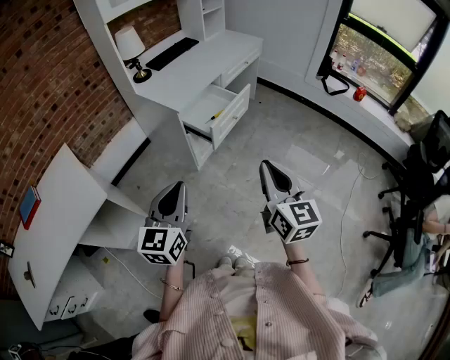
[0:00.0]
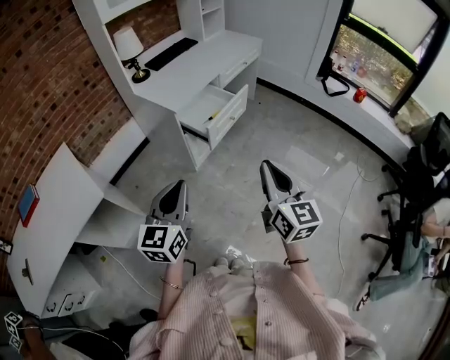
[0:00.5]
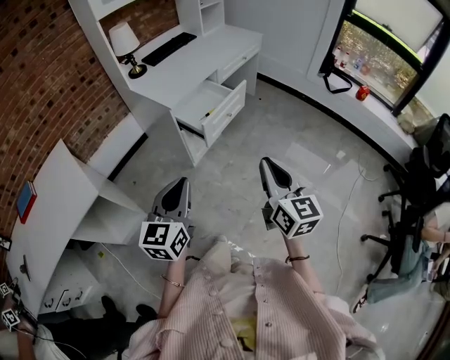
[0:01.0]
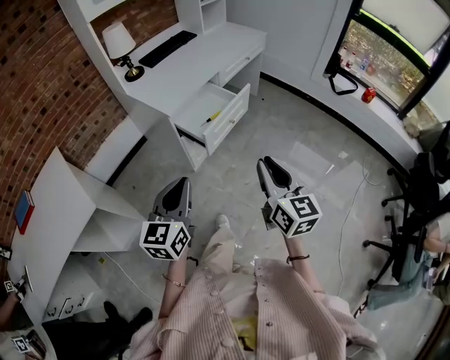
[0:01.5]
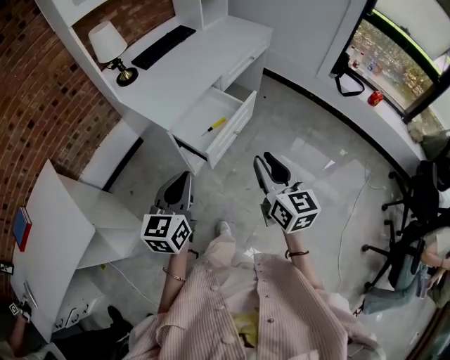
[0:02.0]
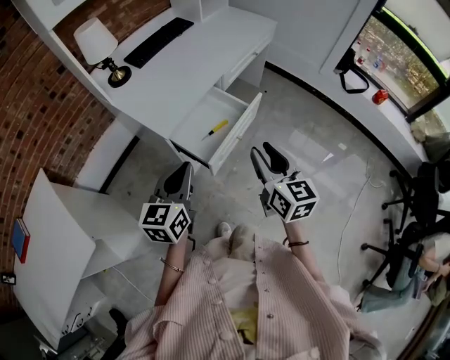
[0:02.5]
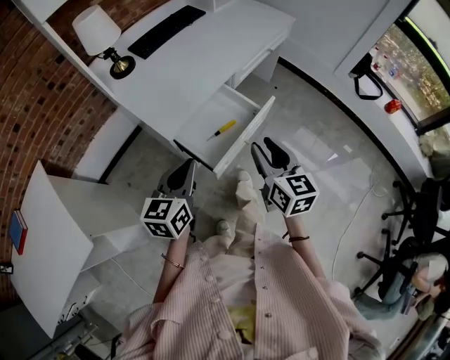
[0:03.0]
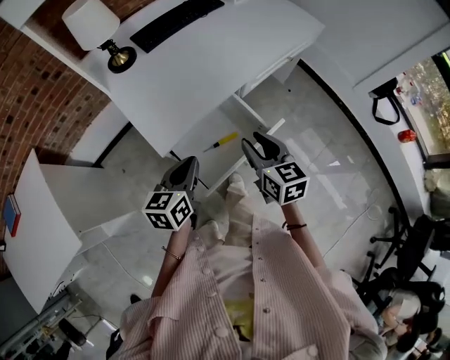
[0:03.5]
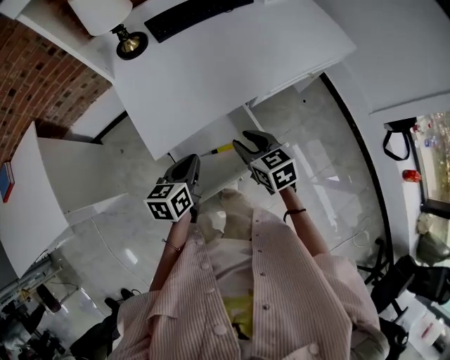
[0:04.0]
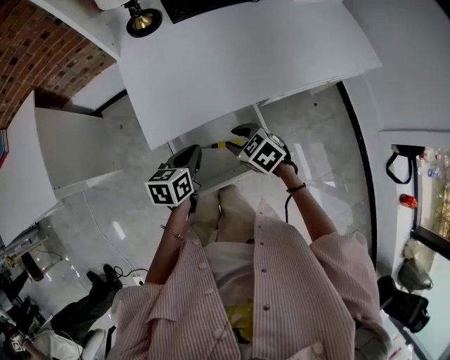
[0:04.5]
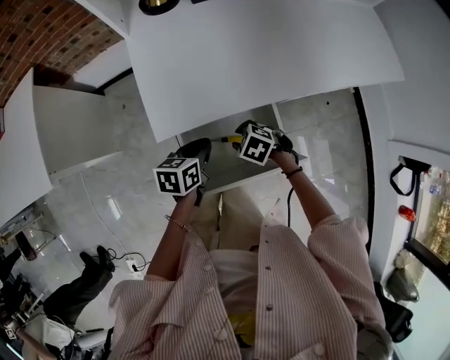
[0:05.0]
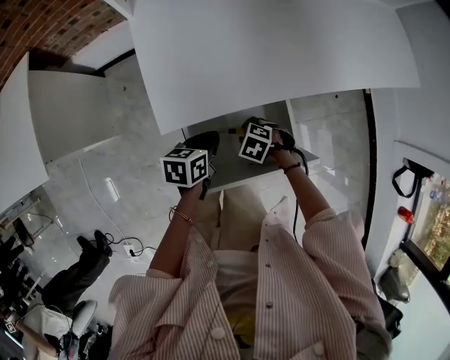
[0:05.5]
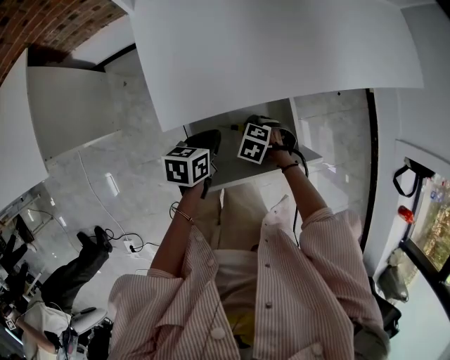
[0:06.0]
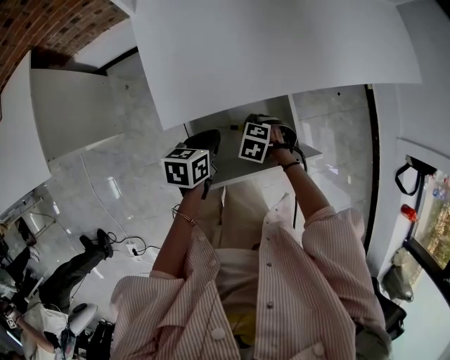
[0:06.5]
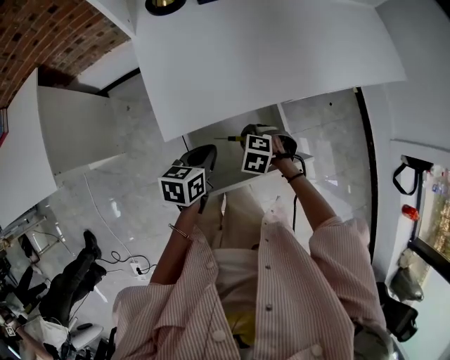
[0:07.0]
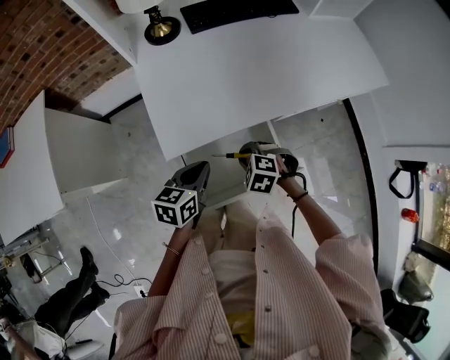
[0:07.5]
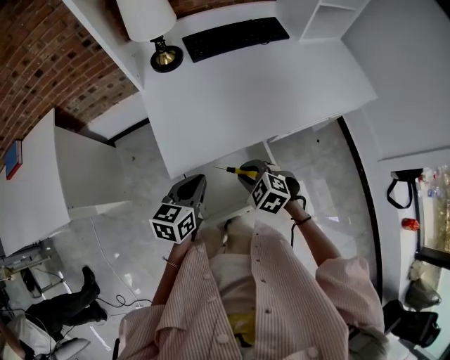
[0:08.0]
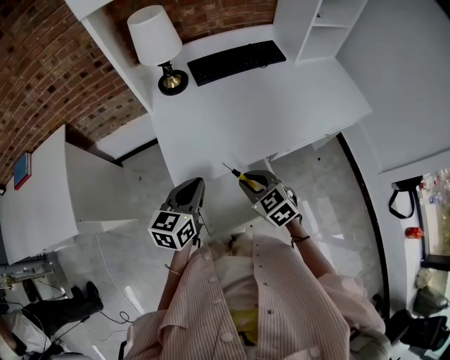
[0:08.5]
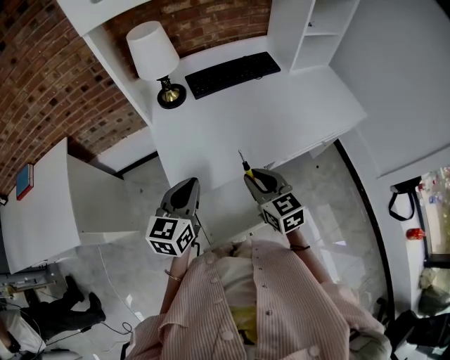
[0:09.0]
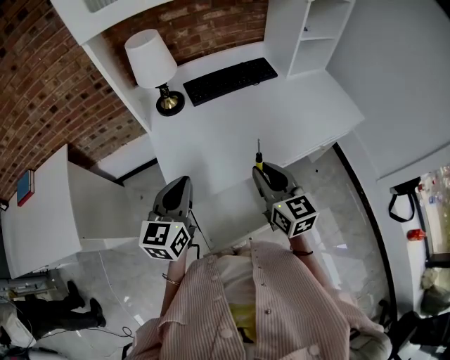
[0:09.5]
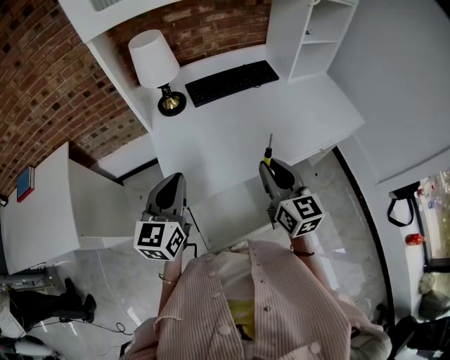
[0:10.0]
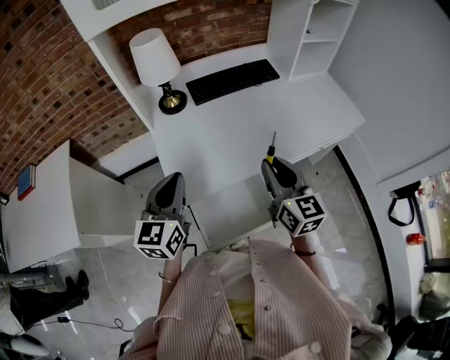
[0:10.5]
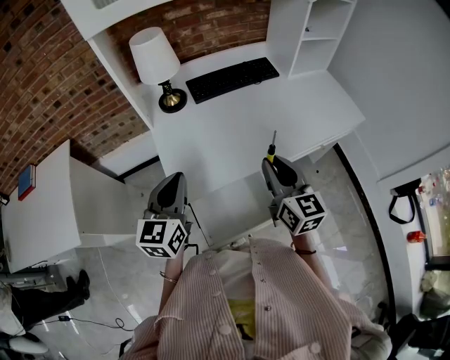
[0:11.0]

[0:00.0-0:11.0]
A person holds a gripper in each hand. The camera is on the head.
0:00.0 to 0:02.0: Both grippers move forward, some 25 cm. The right gripper opens up.
0:02.0 to 0:03.5: The left gripper is displaced forward and downward by some 30 cm, and rotates some 20 degrees, while the right gripper is displaced forward by about 30 cm, and changes its angle by about 30 degrees.
0:03.5 to 0:05.5: The right gripper goes approximately 30 cm downward, and tilts its fingers about 50 degrees downward. Meanwhile the left gripper is displaced downward by some 20 cm, and turns by roughly 30 degrees.
0:05.5 to 0:07.5: Both grippers travel together upward, approximately 10 cm.
0:07.5 to 0:09.0: Both grippers move upward, about 20 cm. The right gripper tilts its fingers approximately 50 degrees upward, while the left gripper swivels some 30 degrees.
0:09.0 to 0:11.0: The right gripper moves upward and to the right, some 10 cm, and turns by about 20 degrees. The left gripper is displaced upward by roughly 5 cm.

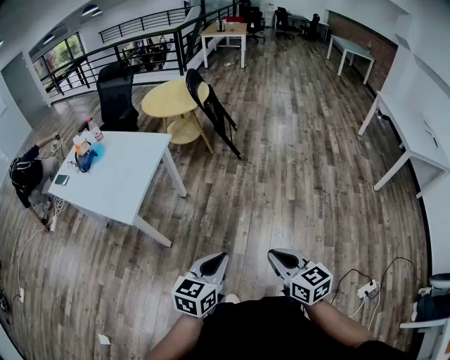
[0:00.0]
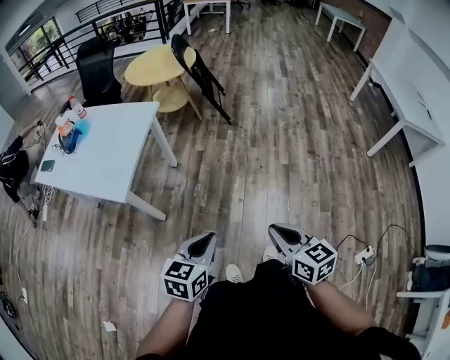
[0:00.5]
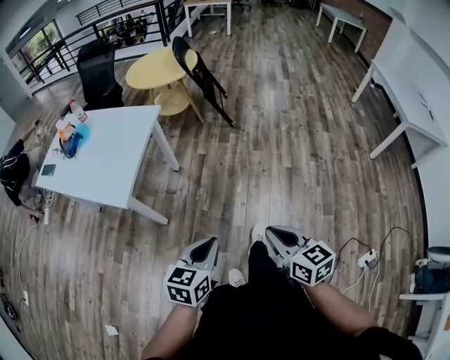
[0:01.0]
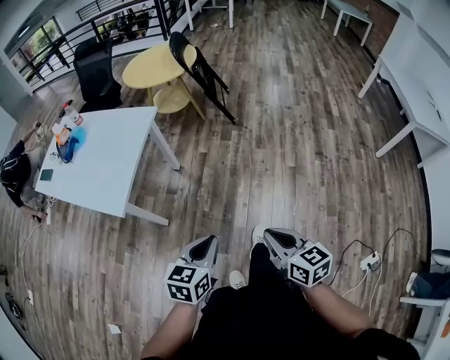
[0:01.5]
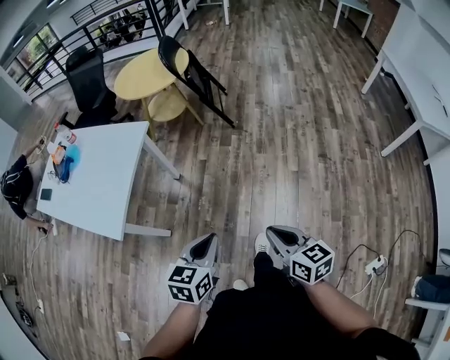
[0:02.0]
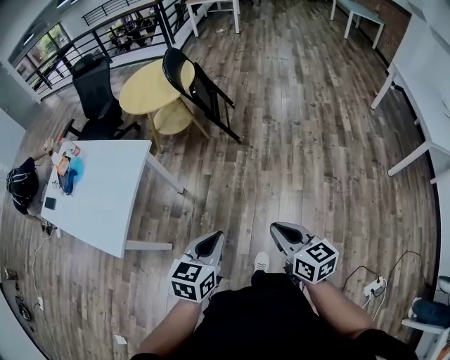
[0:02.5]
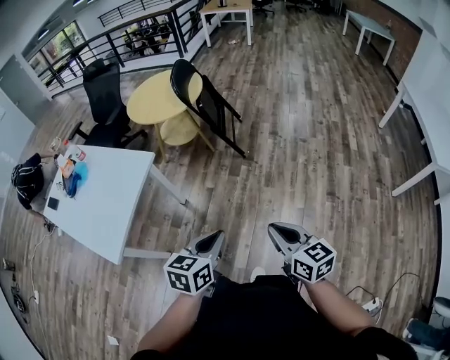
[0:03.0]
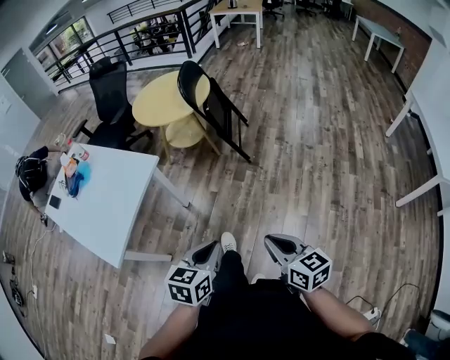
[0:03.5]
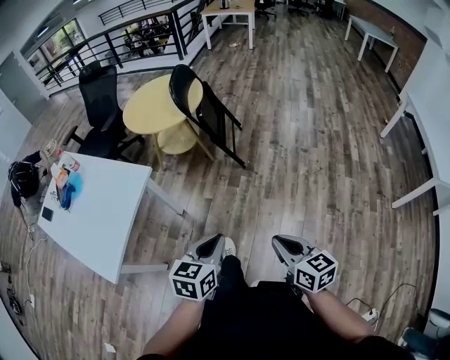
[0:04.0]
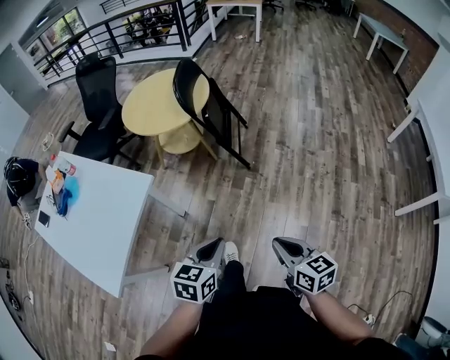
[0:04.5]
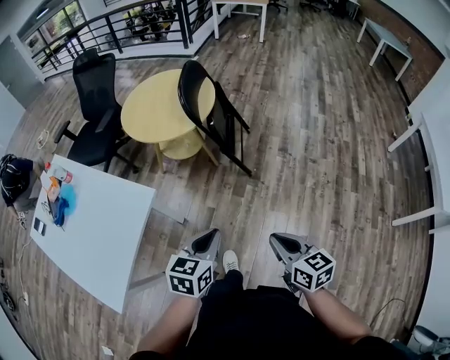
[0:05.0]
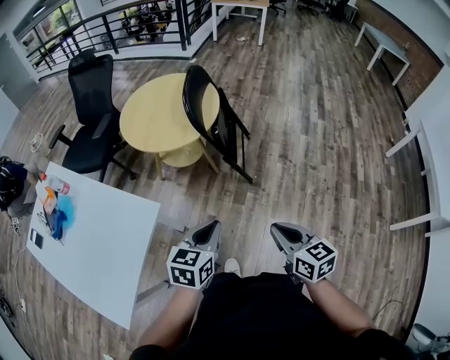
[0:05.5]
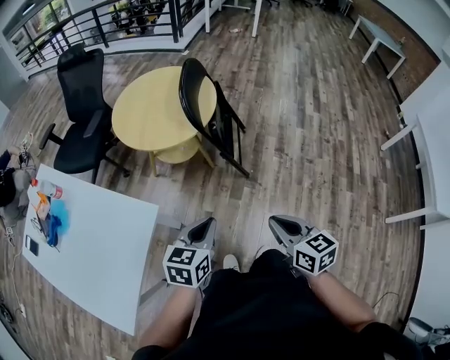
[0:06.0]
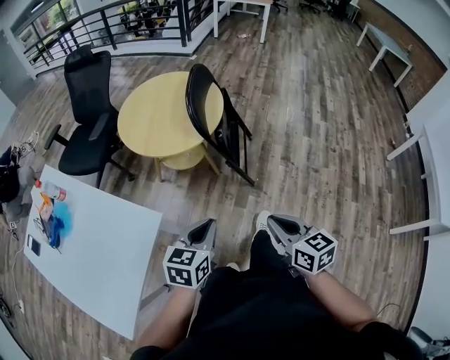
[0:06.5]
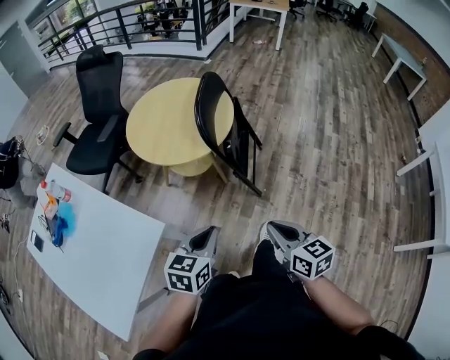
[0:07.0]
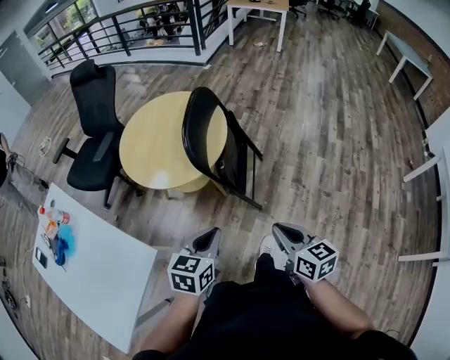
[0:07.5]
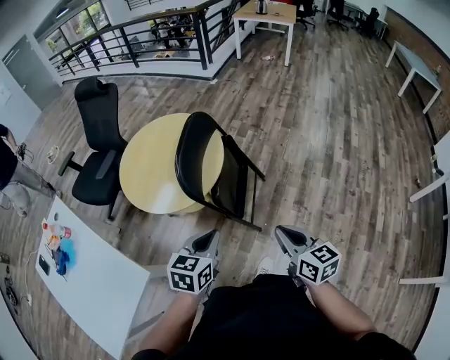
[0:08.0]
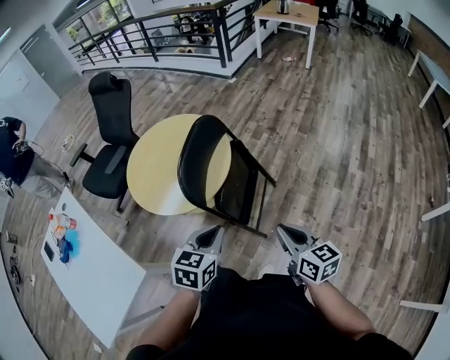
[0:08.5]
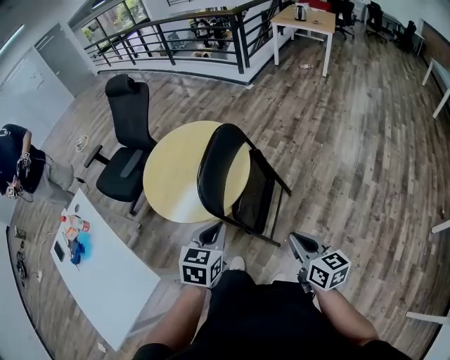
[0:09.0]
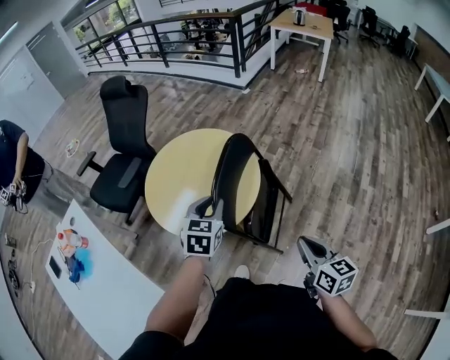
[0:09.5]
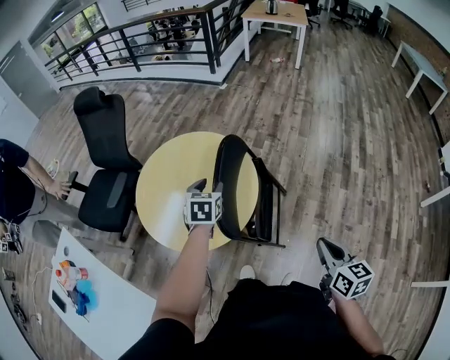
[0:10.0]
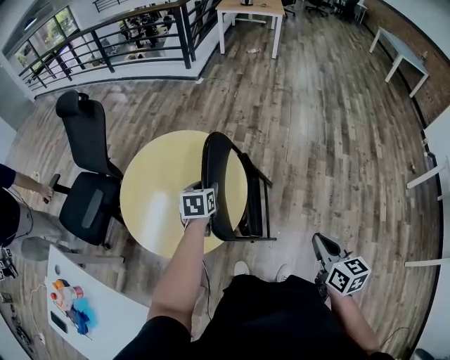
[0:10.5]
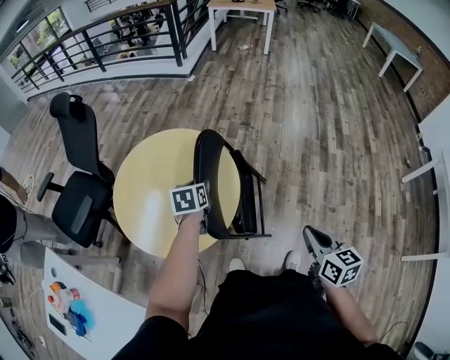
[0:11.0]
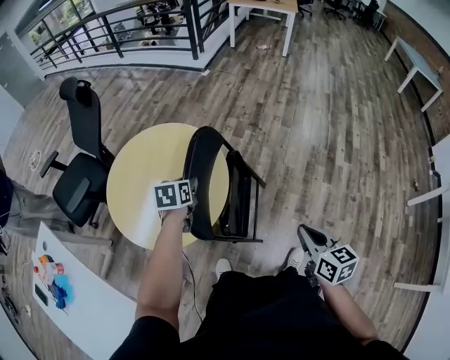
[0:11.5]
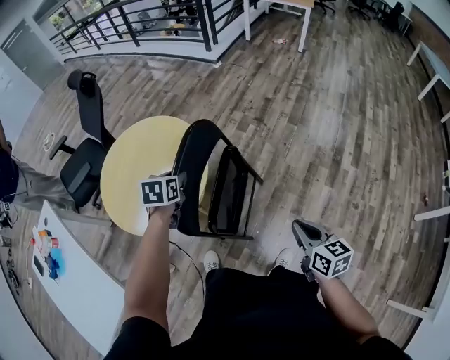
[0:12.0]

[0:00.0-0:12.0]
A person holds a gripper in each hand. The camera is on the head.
0:00.0 to 0:02.0: The two grippers go roughly 20 cm forward.
0:02.0 to 0:04.0: The two grippers go some 25 cm forward.
0:04.0 to 0:06.0: The left gripper is displaced forward and to the left by roughly 30 cm. The right gripper travels forward by about 30 cm.
0:06.0 to 0:08.0: The grippers both shift forward and to the right by approximately 30 cm.
0:08.0 to 0:10.0: The left gripper goes approximately 35 cm forward, and opens. Meanwhile the right gripper heads forward, covering approximately 10 cm.
0:10.0 to 0:12.0: The left gripper is displaced to the right by about 10 cm; the right gripper travels to the right and forward by approximately 20 cm.

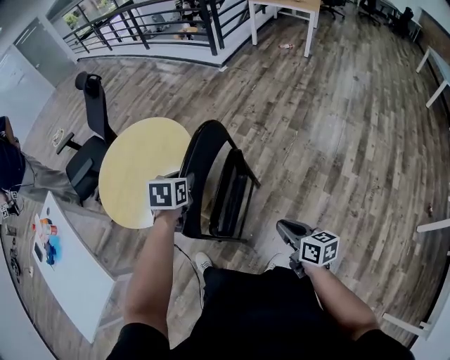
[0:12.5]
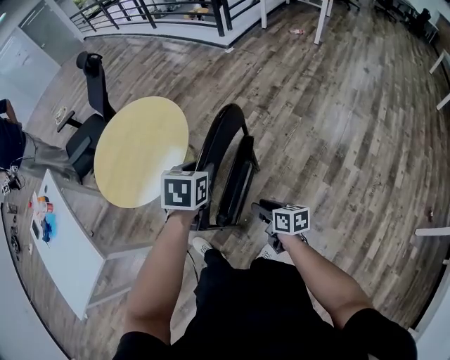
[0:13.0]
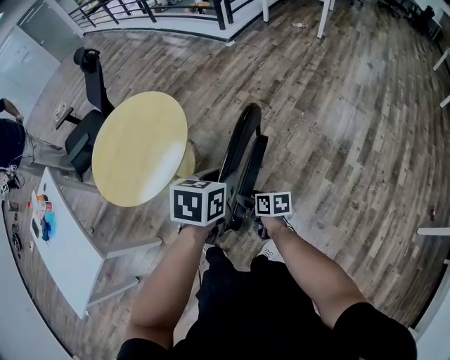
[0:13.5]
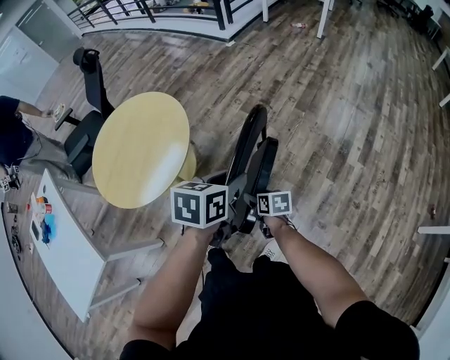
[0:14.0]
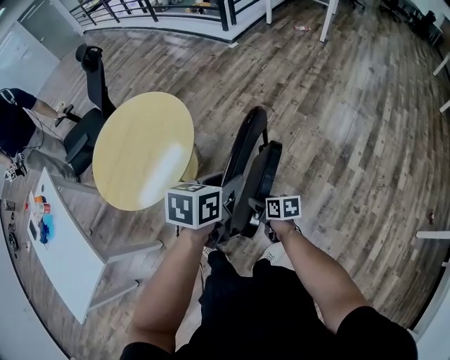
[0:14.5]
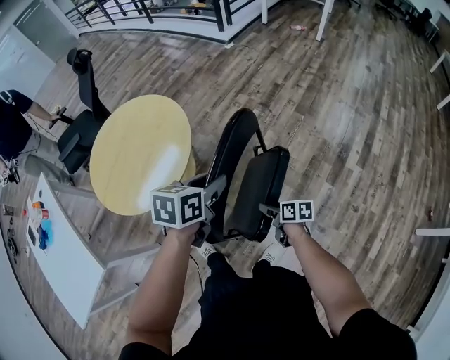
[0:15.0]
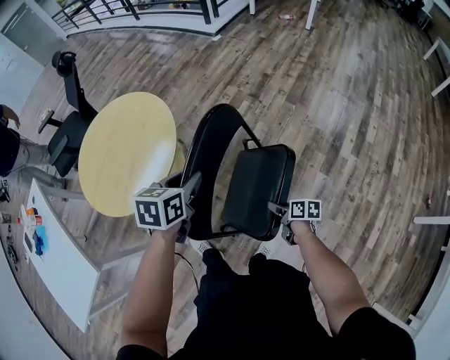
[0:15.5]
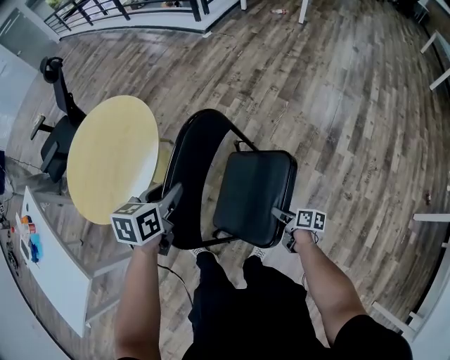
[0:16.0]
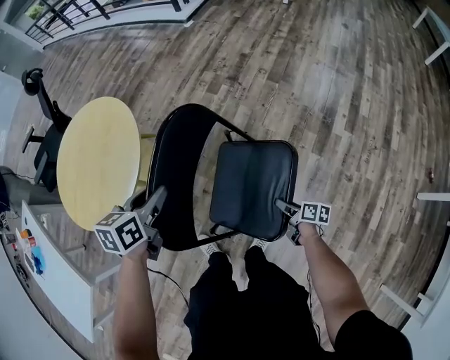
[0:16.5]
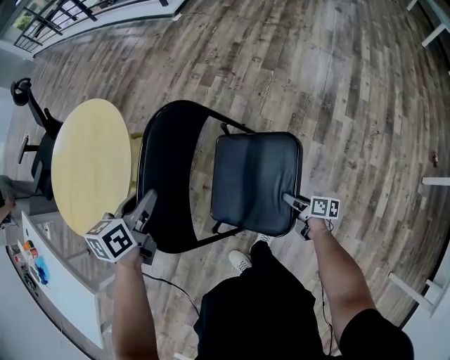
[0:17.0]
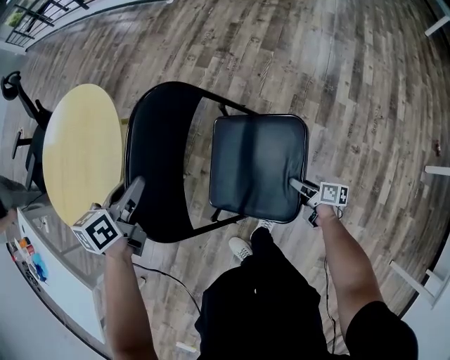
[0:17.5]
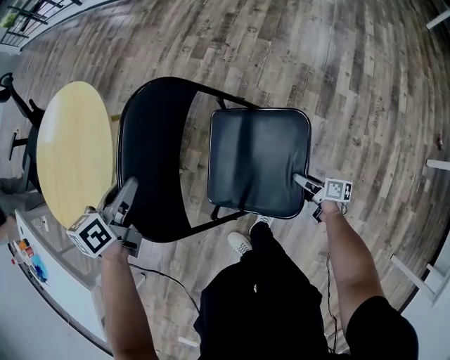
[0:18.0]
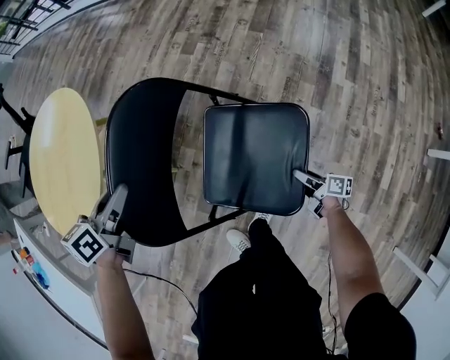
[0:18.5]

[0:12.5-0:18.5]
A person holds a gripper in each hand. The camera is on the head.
0:12.5 to 0:14.5: The right gripper travels downward and forward by roughly 20 cm, turns by approximately 20 degrees, and opens; the left gripper shifts some 15 cm to the right and backward, and swivels about 20 degrees.
0:14.5 to 0:16.5: The right gripper moves to the right, downward and backward, some 25 cm, and turns by about 30 degrees. Meanwhile the left gripper is displaced downward and to the left by approximately 10 cm.
0:16.5 to 0:18.5: The right gripper travels downward and to the right by about 10 cm. Meanwhile the left gripper travels downward by roughly 5 cm.
